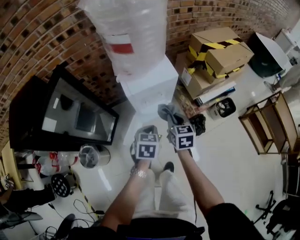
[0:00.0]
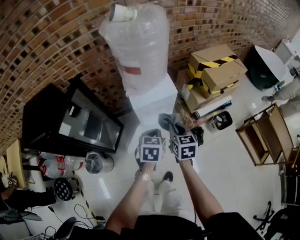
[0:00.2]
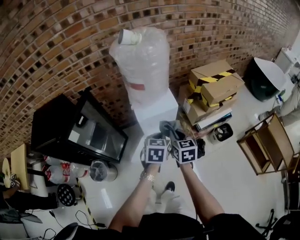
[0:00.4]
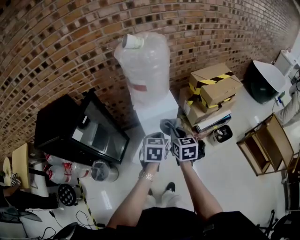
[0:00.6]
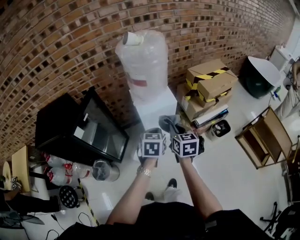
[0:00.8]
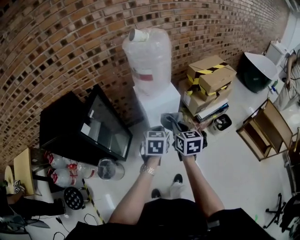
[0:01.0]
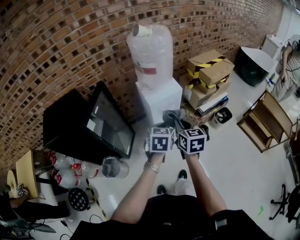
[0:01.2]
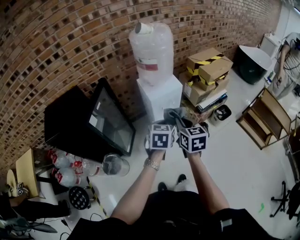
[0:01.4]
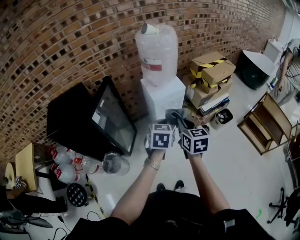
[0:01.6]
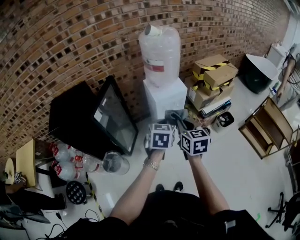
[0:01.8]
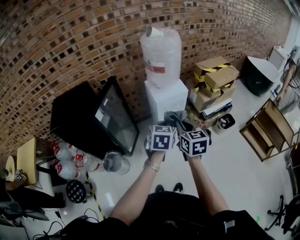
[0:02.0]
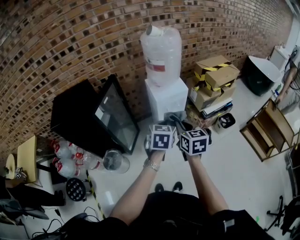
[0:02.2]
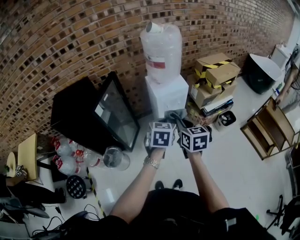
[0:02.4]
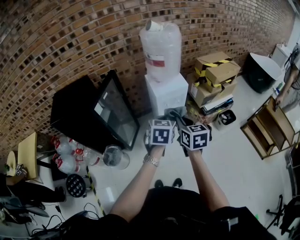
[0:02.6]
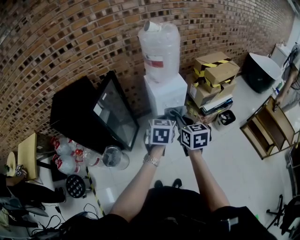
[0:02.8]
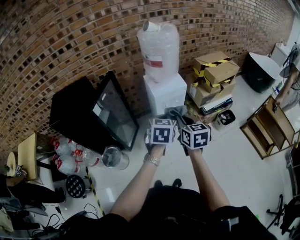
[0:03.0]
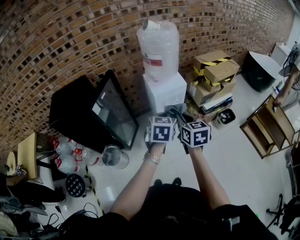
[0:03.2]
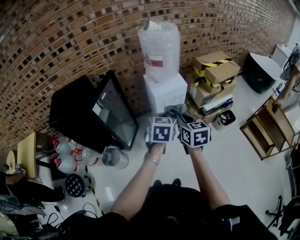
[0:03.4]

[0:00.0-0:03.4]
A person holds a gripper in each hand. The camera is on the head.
0.0 to 1.6 s: Both grippers move upward and backward, some 30 cm.
1.6 to 3.4 s: The grippers move only a little.

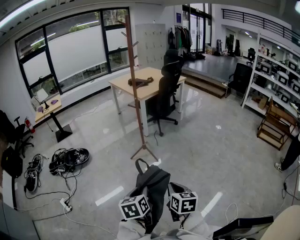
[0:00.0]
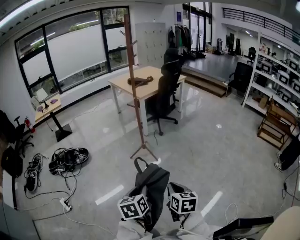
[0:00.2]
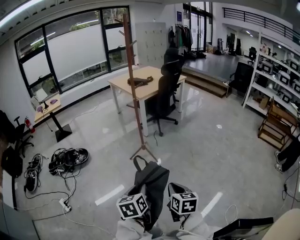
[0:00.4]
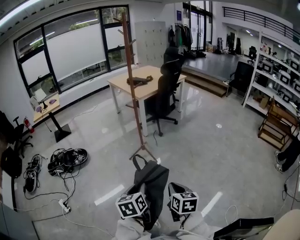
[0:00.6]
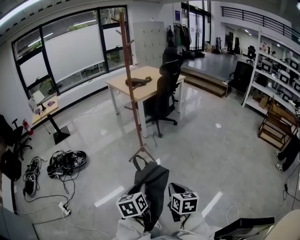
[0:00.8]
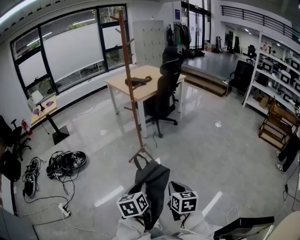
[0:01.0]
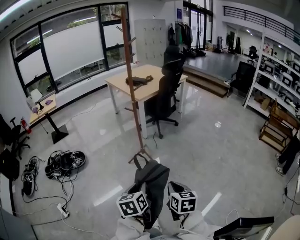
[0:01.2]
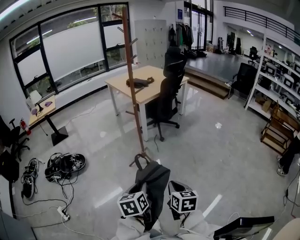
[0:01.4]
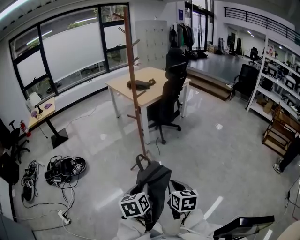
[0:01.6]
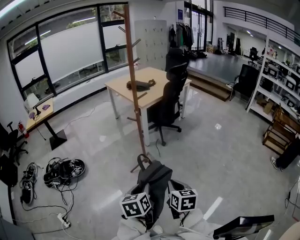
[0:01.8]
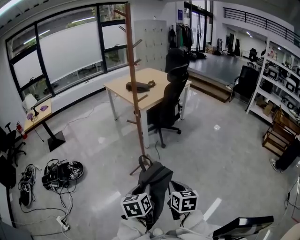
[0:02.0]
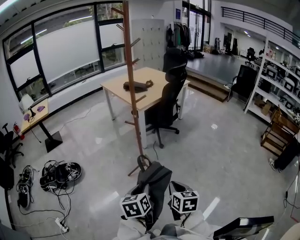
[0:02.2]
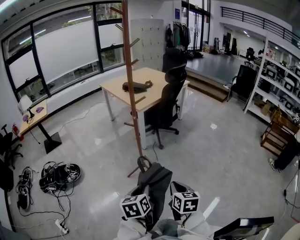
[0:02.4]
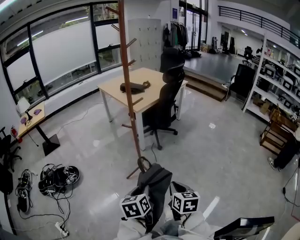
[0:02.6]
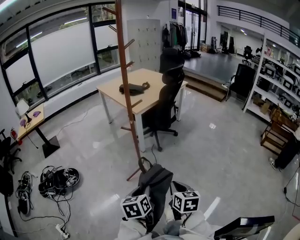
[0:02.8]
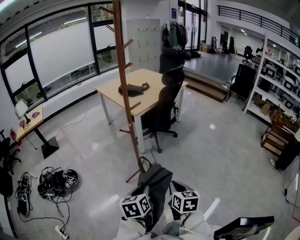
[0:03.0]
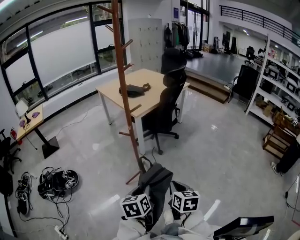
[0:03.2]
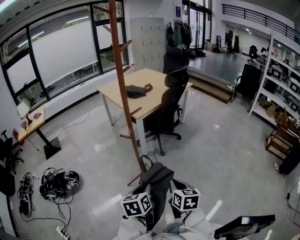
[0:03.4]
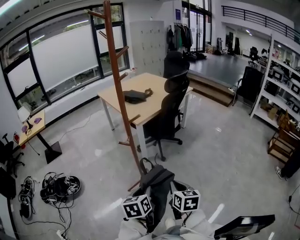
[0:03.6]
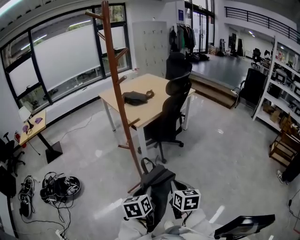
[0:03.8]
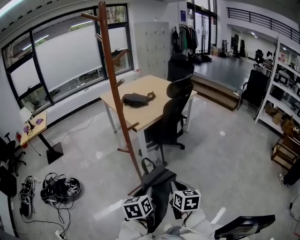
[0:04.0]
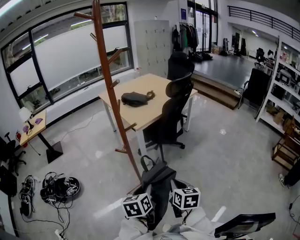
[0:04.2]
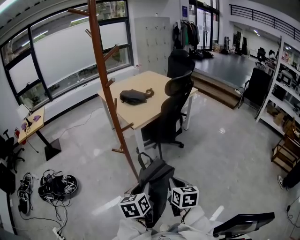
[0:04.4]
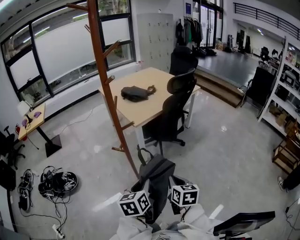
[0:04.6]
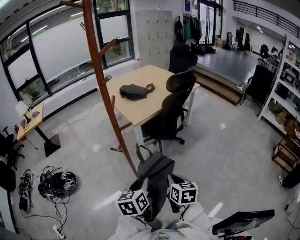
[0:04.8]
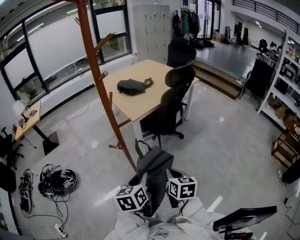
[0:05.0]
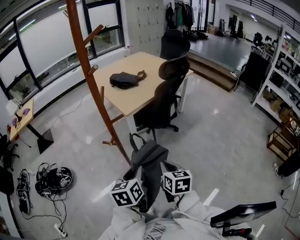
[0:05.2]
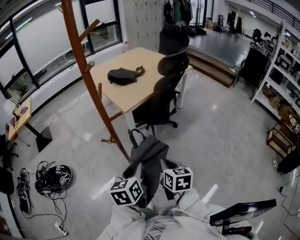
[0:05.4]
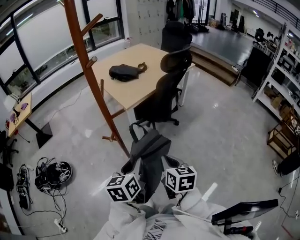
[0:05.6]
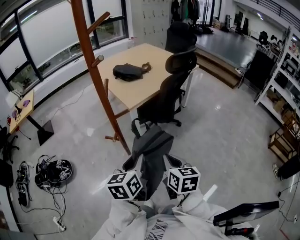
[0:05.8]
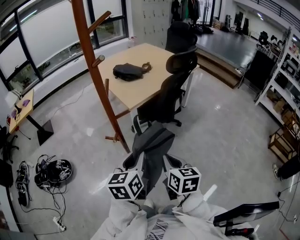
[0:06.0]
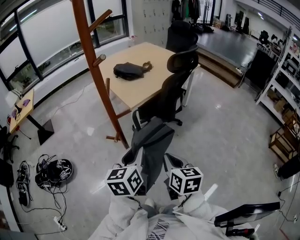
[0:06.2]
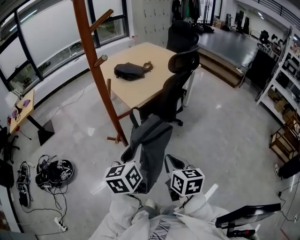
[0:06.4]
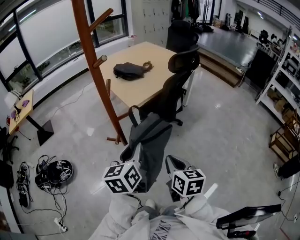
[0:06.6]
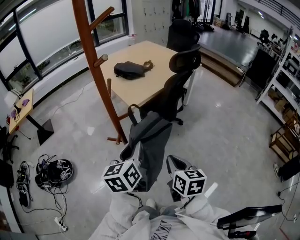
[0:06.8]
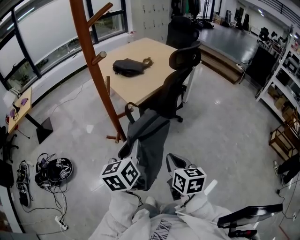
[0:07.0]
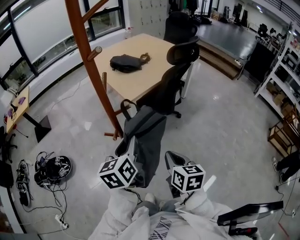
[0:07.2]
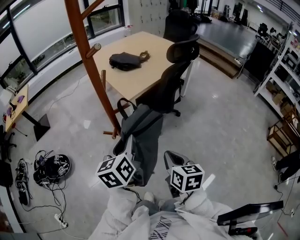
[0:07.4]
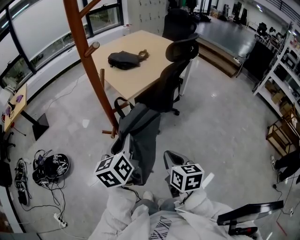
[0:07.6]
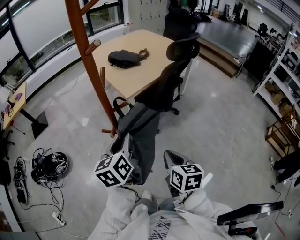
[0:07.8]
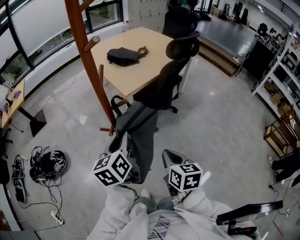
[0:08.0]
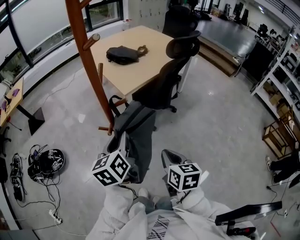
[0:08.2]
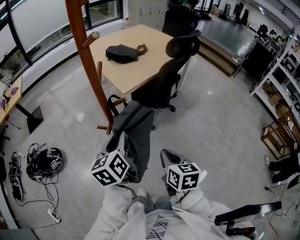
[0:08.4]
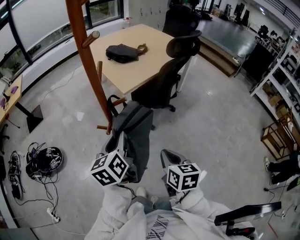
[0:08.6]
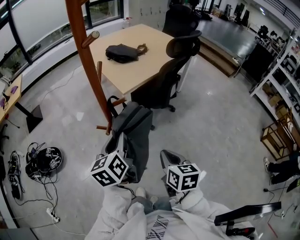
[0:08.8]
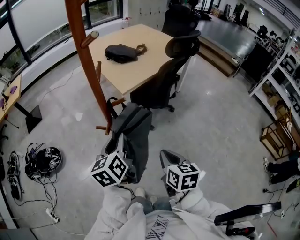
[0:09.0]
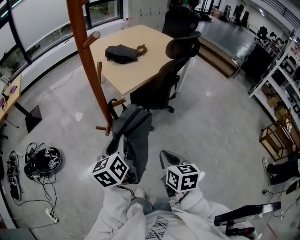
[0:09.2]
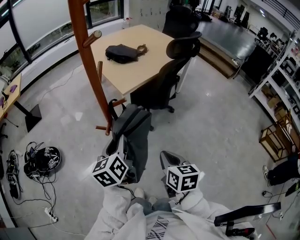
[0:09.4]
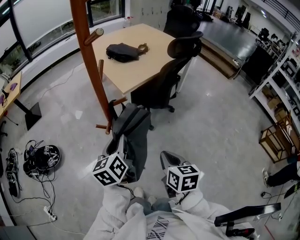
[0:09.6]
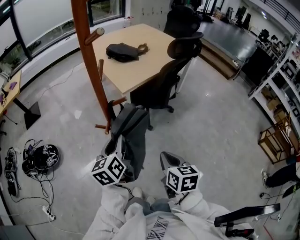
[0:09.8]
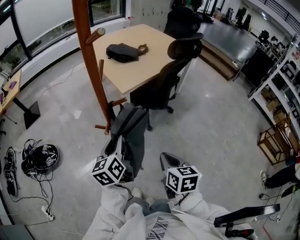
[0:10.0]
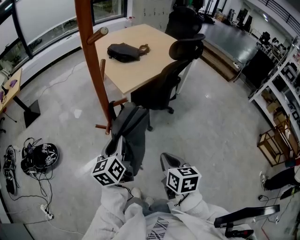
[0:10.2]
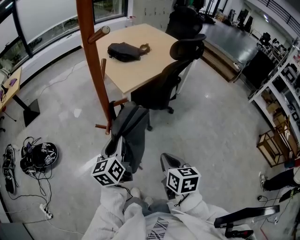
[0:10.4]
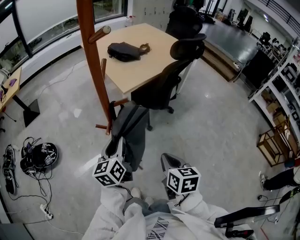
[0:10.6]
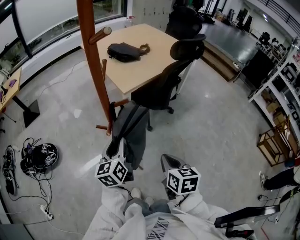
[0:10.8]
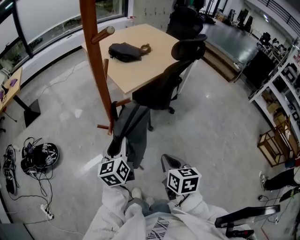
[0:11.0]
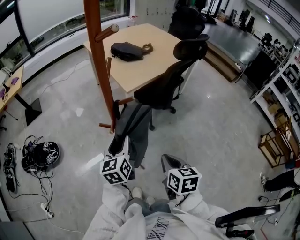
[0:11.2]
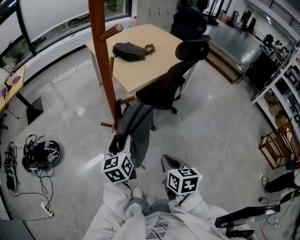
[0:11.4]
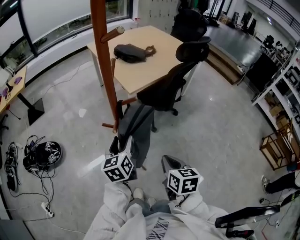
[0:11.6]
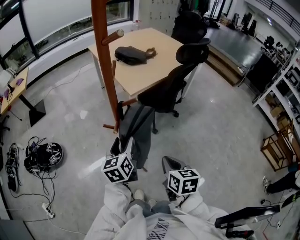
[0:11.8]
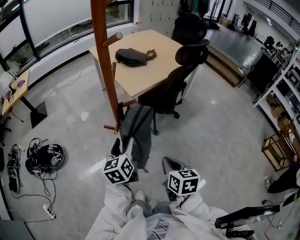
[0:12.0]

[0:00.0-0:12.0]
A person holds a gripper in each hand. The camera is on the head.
0.0 to 1.6 s: Both grippers travel together forward, some 20 cm.
1.6 to 3.0 s: Both grippers travel together forward, some 15 cm.
3.0 to 4.4 s: The two grippers go some 20 cm forward.
4.4 to 6.0 s: The right gripper moves forward, about 5 cm. The left gripper moves forward and upward, roughly 10 cm.
6.0 to 7.6 s: The left gripper shifts some 5 cm forward and to the left.
7.6 to 9.0 s: The grippers make only small movements.
9.0 to 10.4 s: There are only small adjustments of the grippers.
10.4 to 12.0 s: The left gripper opens its fingers.

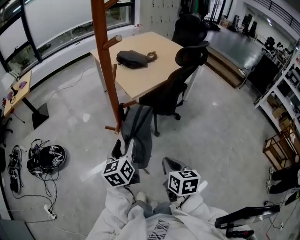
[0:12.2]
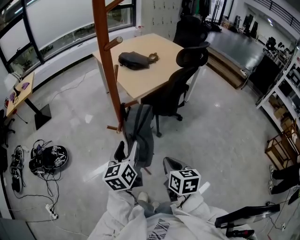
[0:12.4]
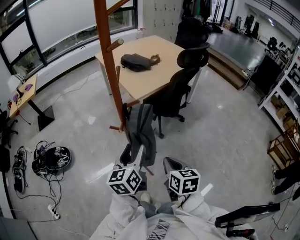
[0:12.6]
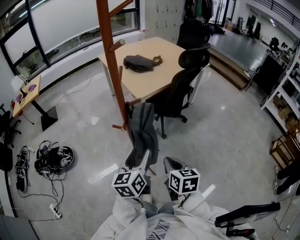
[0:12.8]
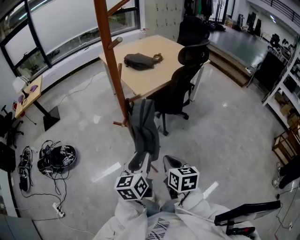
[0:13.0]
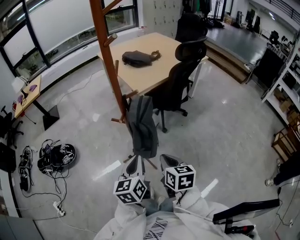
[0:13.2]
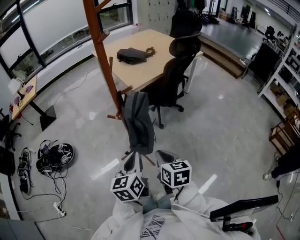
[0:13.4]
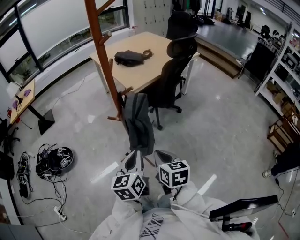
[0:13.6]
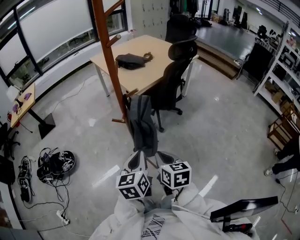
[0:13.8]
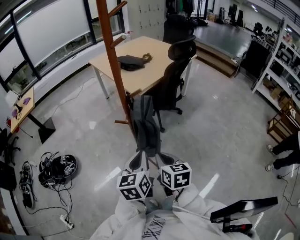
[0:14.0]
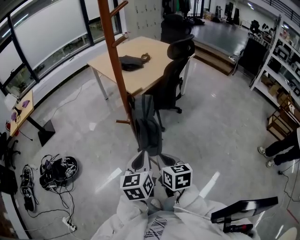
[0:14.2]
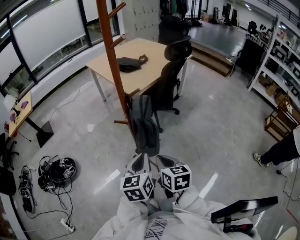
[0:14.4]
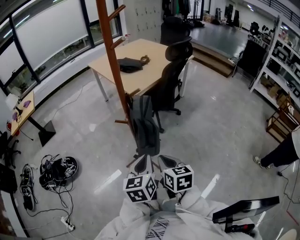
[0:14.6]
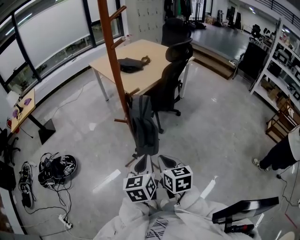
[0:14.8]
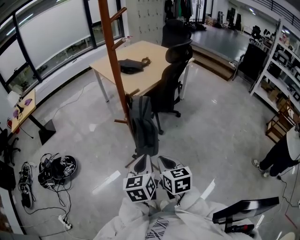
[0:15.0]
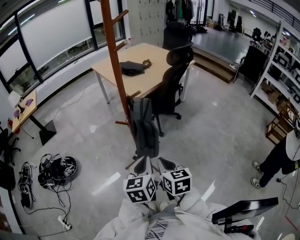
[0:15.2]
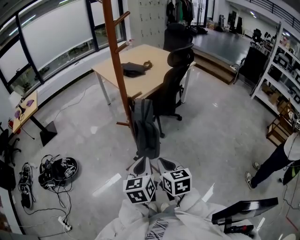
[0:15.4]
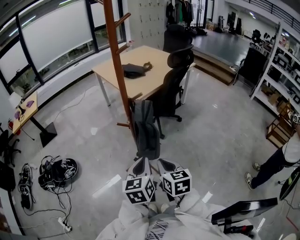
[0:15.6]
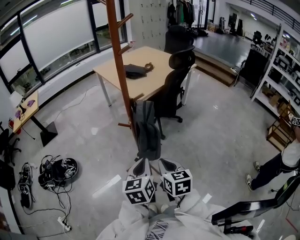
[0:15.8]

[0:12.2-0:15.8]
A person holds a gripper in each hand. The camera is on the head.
12.2 to 14.0 s: The left gripper moves backward, approximately 15 cm, and closes its fingers, while the right gripper moves to the left, some 10 cm.
14.0 to 15.8 s: There are only small adjustments of the grippers.

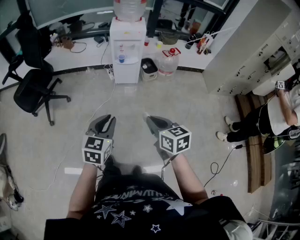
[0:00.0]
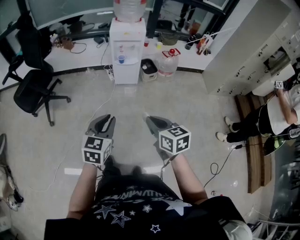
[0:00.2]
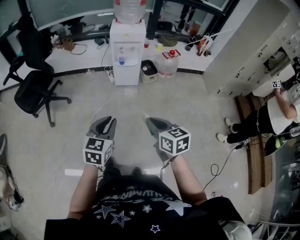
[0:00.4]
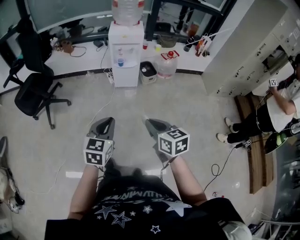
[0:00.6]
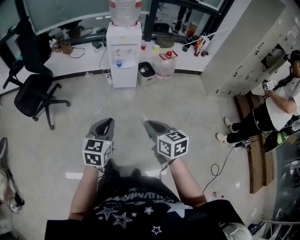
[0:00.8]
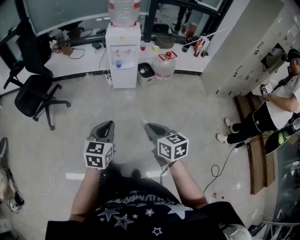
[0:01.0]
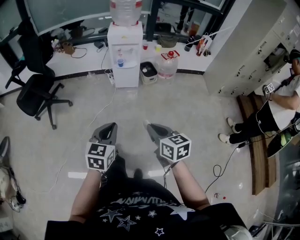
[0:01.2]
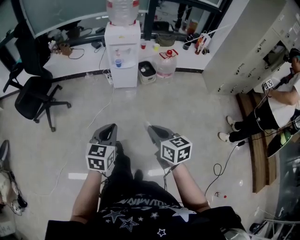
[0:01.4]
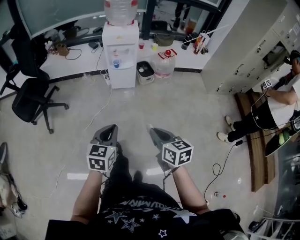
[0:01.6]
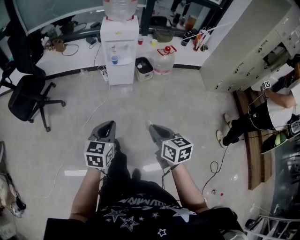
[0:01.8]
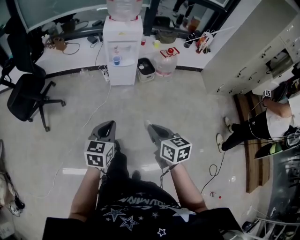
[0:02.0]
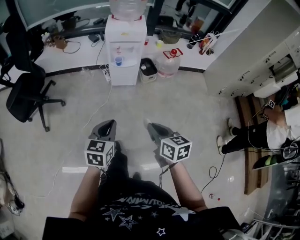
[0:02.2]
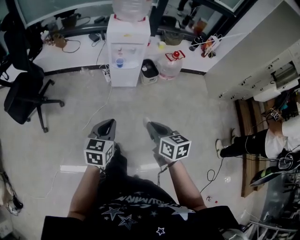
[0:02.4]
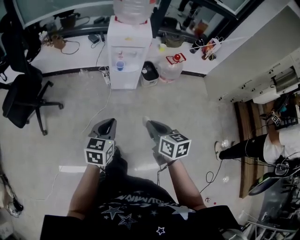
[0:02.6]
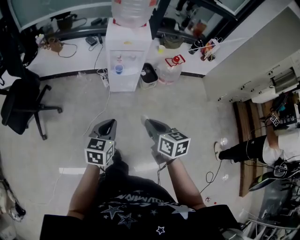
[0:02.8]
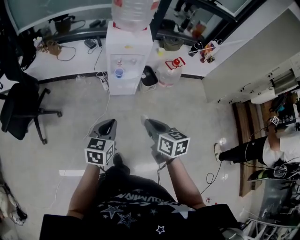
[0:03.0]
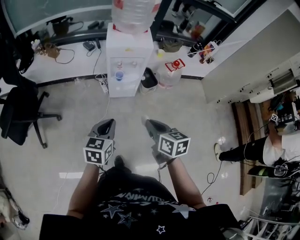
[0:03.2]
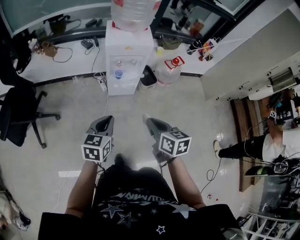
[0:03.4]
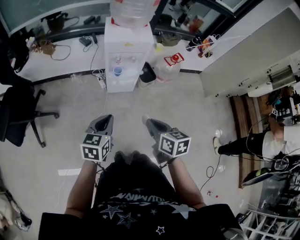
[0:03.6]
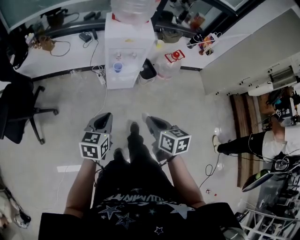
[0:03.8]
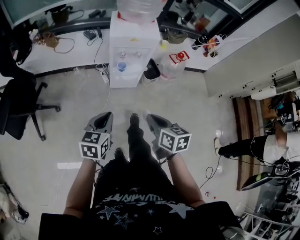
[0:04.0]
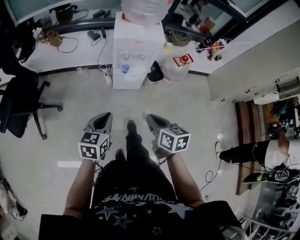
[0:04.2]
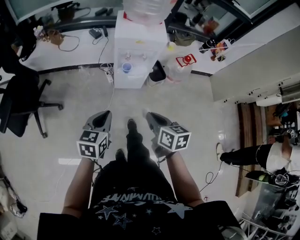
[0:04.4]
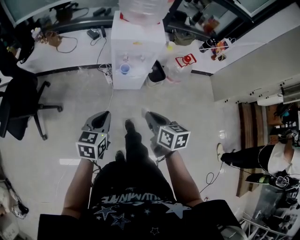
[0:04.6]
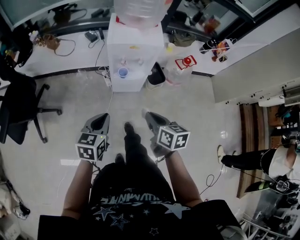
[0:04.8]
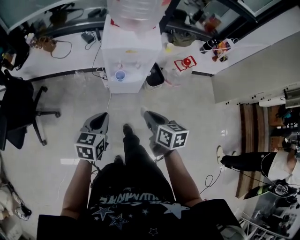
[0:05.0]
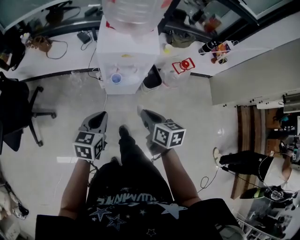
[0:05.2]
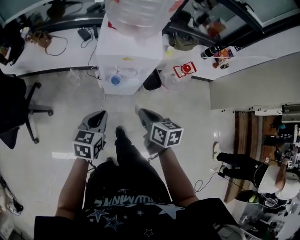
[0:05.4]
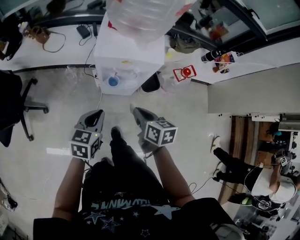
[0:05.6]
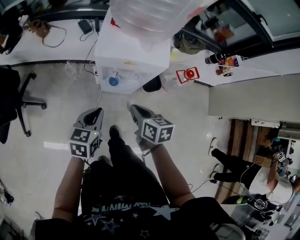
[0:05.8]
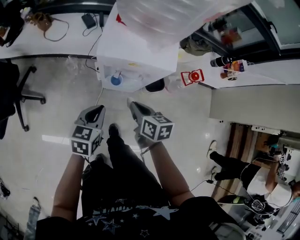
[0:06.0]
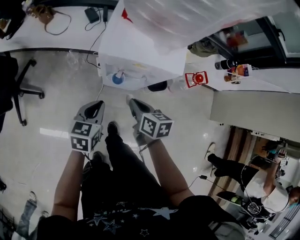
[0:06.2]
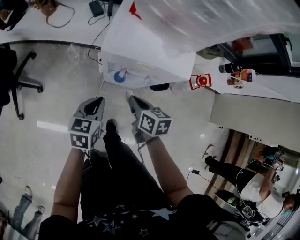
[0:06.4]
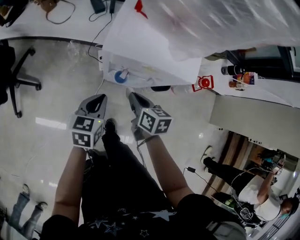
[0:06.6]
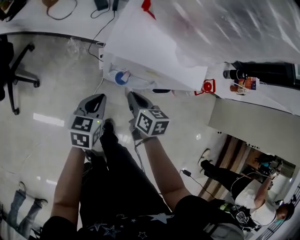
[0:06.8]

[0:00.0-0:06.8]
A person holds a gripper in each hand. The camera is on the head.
0.0 to 1.4 s: The grippers move only a little.
1.4 to 2.8 s: Both grippers travel together forward, some 30 cm.
2.8 to 4.0 s: The left gripper moves forward and to the left, about 10 cm. Meanwhile the right gripper goes about 10 cm forward.
4.0 to 5.4 s: Both grippers move forward, some 25 cm.
5.4 to 6.8 s: The two grippers go some 25 cm downward and forward.
